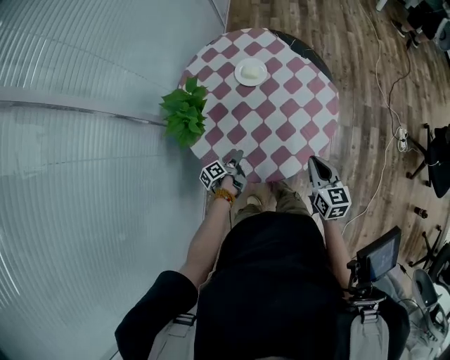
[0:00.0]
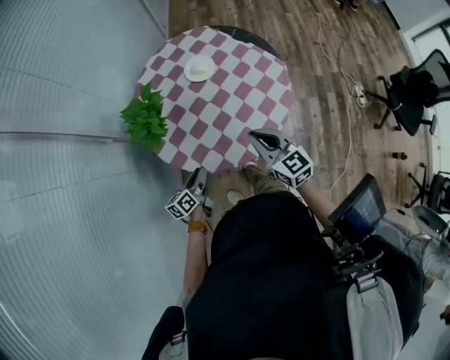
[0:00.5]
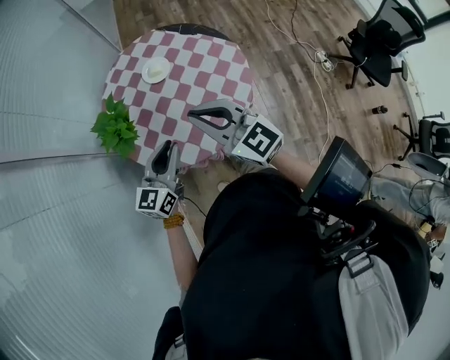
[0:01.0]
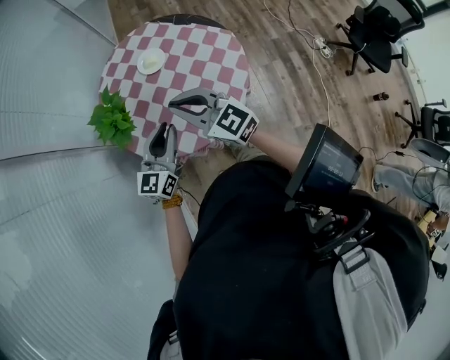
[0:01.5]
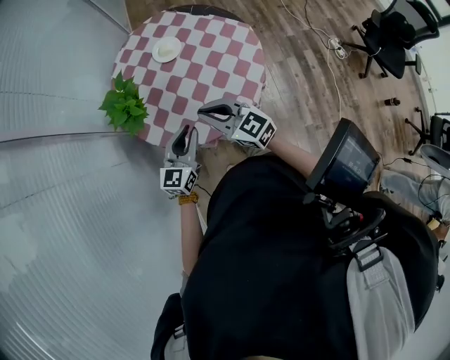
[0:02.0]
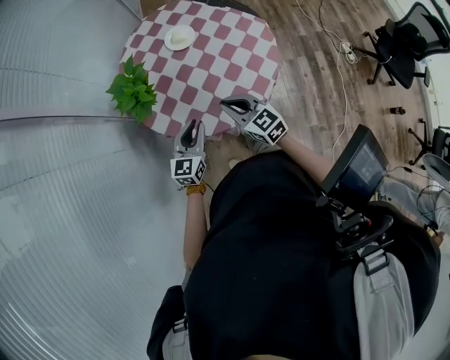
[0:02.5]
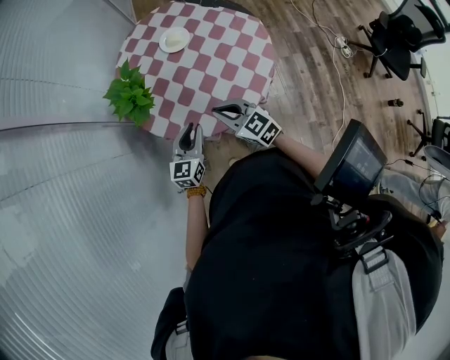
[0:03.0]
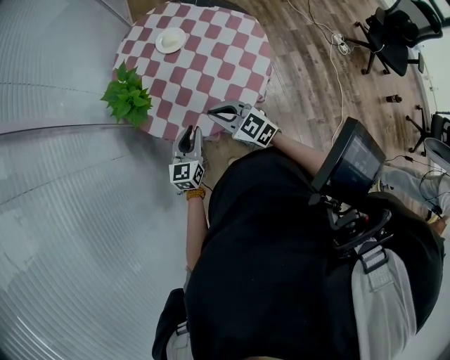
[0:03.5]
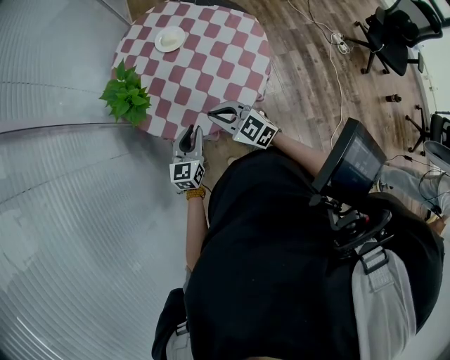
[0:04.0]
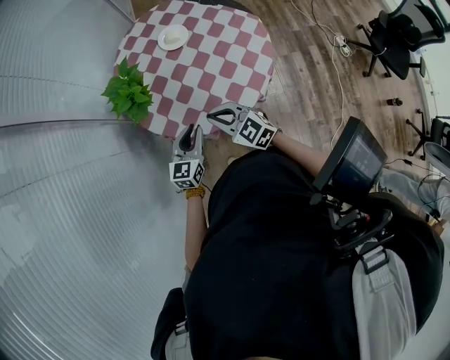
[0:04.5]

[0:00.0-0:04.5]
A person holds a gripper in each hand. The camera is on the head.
0:00.0 to 0:02.0: The right gripper is displaced to the left and upward by some 20 cm, and turns by about 30 degrees; the left gripper moves upward, approximately 25 cm, and twists about 80 degrees clockwise, seen from behind.
0:02.0 to 0:04.5: The two grippers go about 5 cm downward.

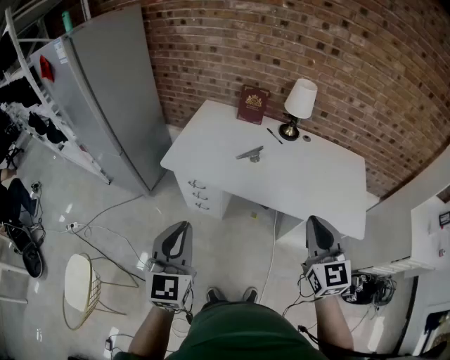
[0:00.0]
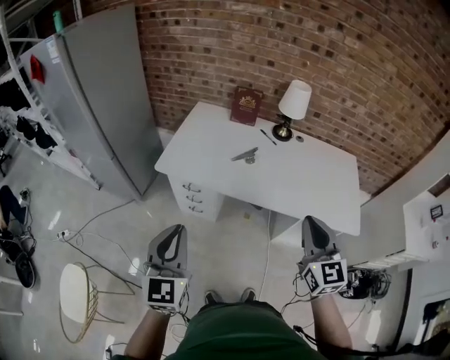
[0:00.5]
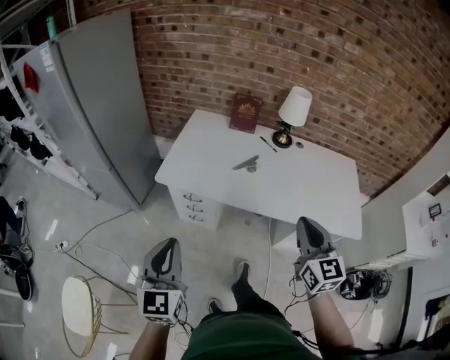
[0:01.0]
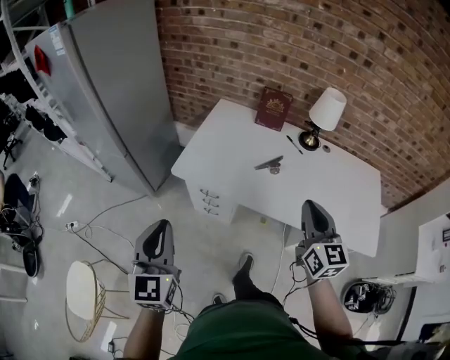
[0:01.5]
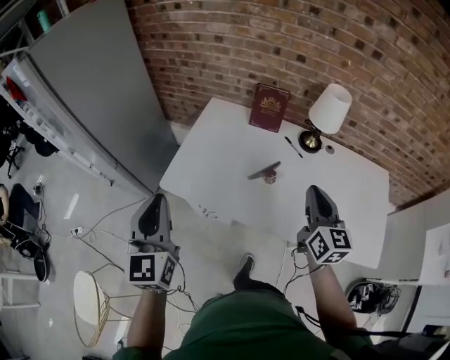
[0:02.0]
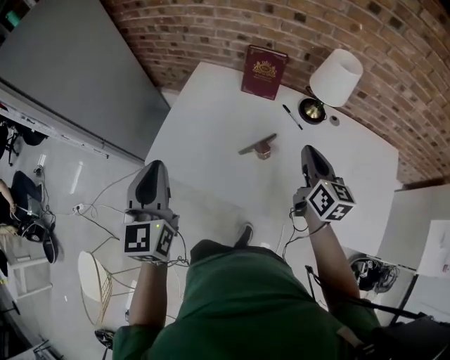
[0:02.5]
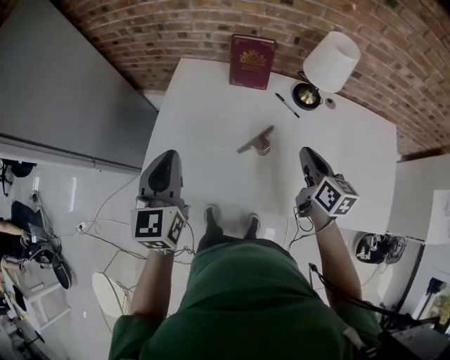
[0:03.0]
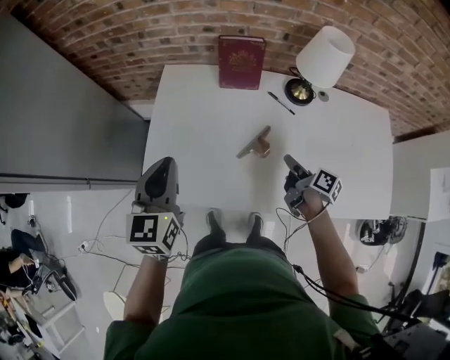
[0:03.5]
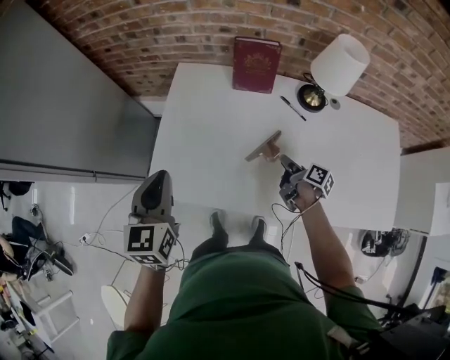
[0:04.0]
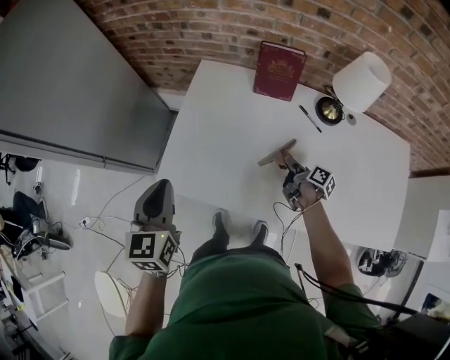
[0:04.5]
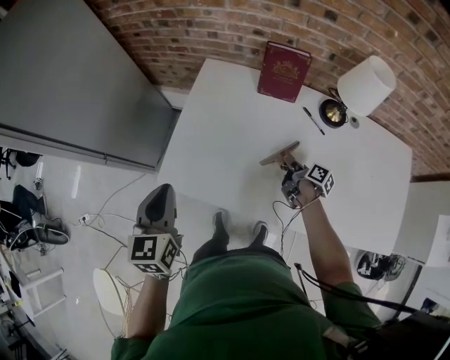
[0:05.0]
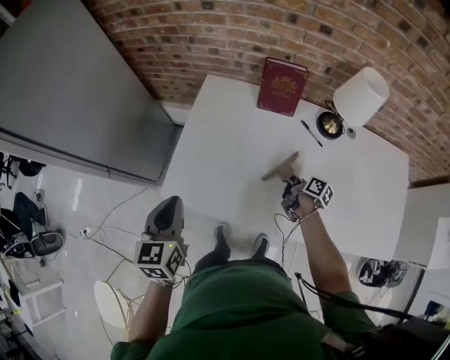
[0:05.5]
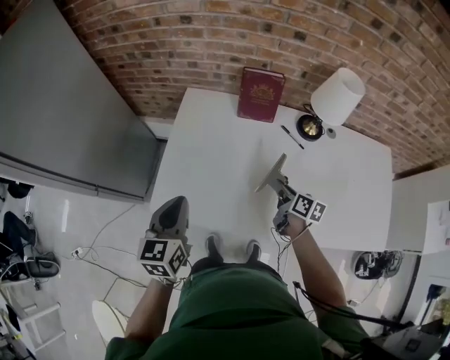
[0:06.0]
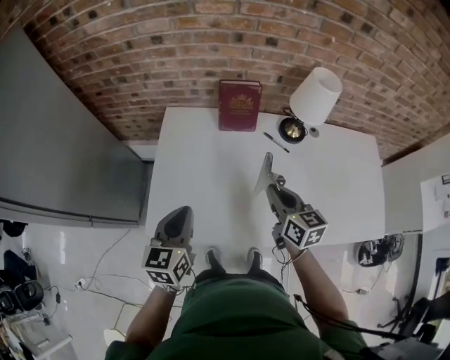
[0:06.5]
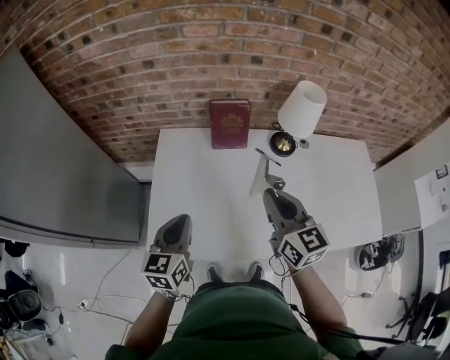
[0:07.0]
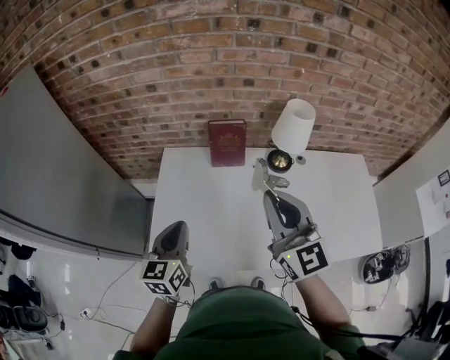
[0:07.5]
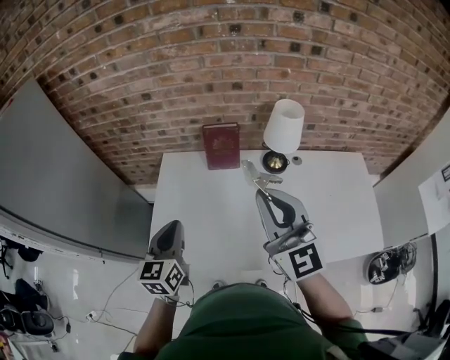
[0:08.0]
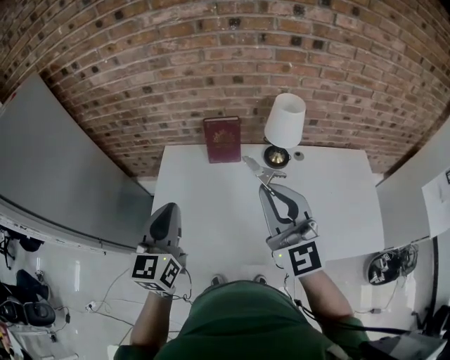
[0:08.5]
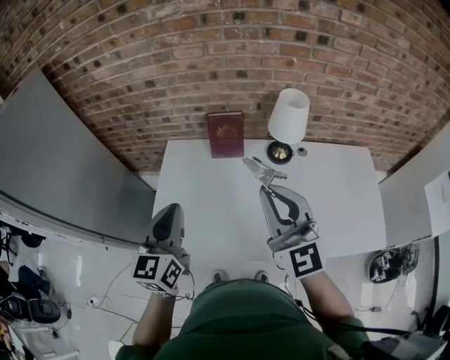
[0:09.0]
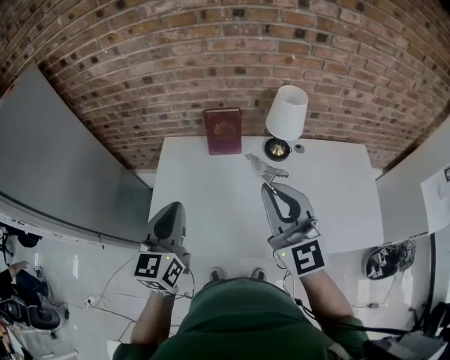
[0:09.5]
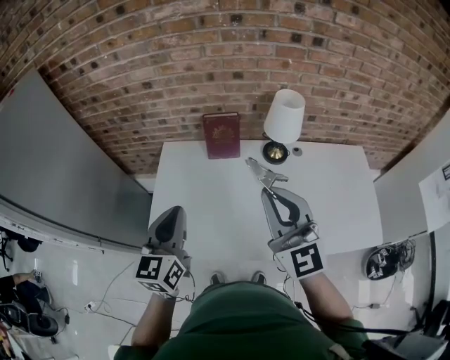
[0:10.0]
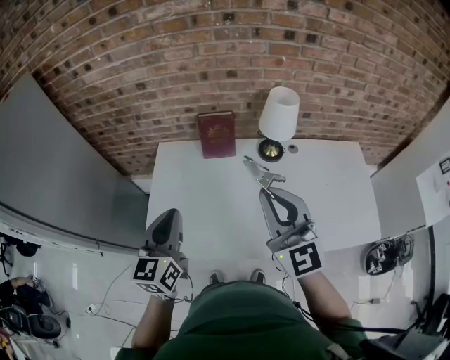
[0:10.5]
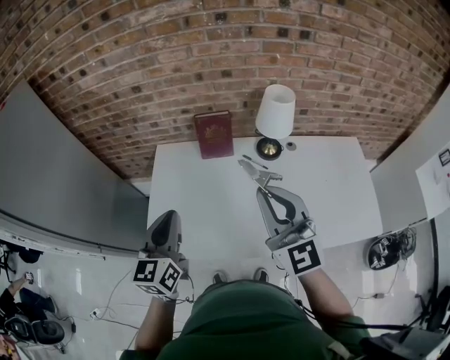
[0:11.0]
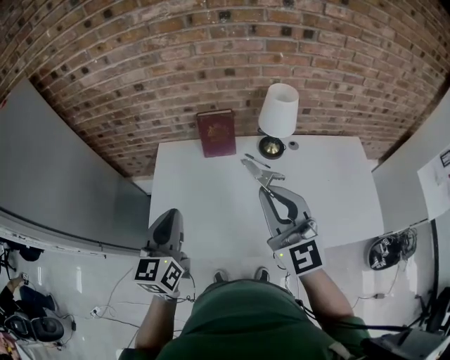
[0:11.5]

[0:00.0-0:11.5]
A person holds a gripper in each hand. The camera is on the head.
0:00.0 to 0:02.0: The two grippers go roughly 30 cm forward. The right gripper changes its angle by about 20 degrees.
0:02.0 to 0:04.0: The left gripper heads forward and downward, covering about 25 cm, and swivels some 20 degrees; the right gripper shifts some 35 cm downward and forward, rotates around the line of its fingers by approximately 70 degrees, clockwise from behind, and opens its fingers.
0:04.0 to 0:06.0: The right gripper heads upward, covering approximately 5 cm, rotates about 30 degrees, and closes up.
0:06.0 to 0:07.5: The left gripper moves upward, about 5 cm. Meanwhile the right gripper goes some 35 cm upward, and rolls counterclockwise, seen from behind, by roughly 60 degrees.
0:07.5 to 0:09.5: The right gripper changes place by about 5 cm; the left gripper travels upward by roughly 10 cm.
0:09.5 to 0:11.5: The grippers move only a little.

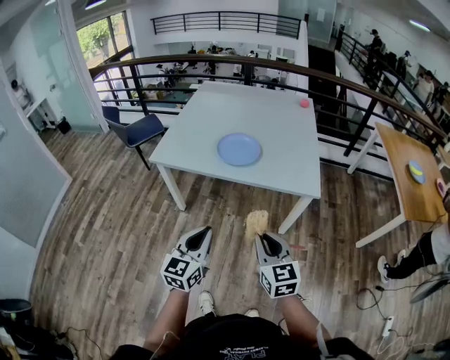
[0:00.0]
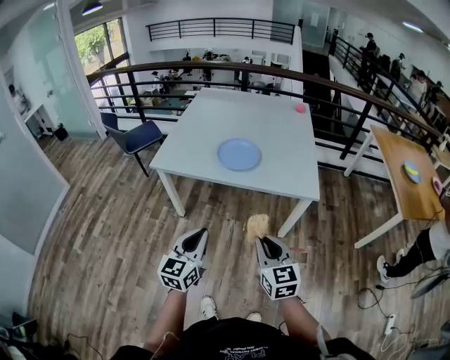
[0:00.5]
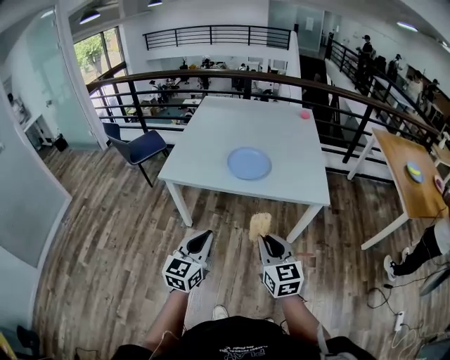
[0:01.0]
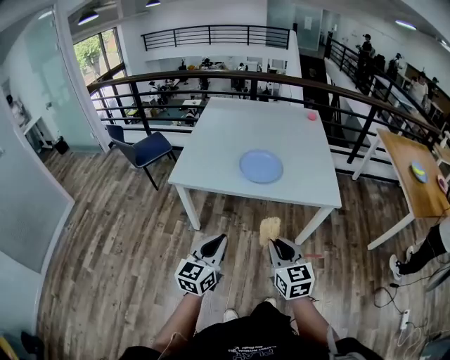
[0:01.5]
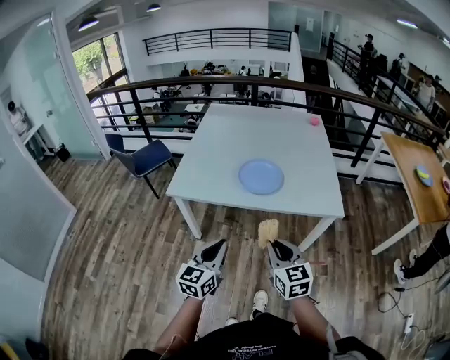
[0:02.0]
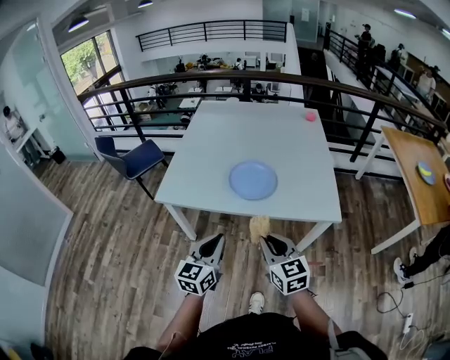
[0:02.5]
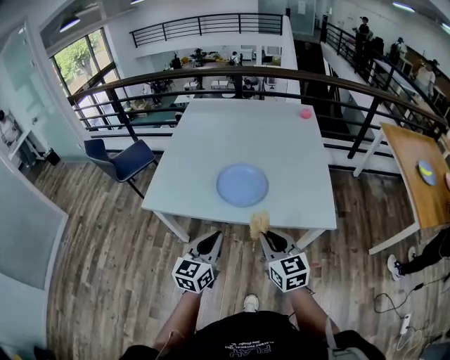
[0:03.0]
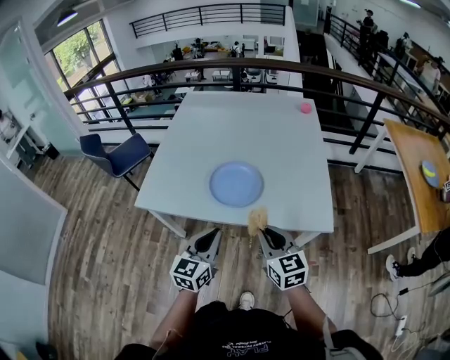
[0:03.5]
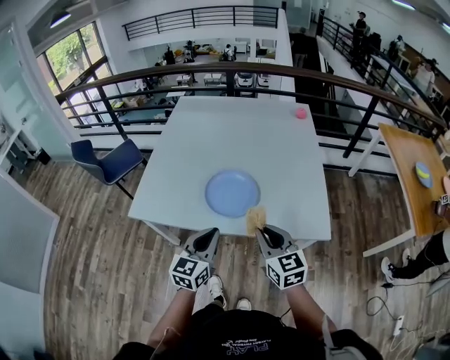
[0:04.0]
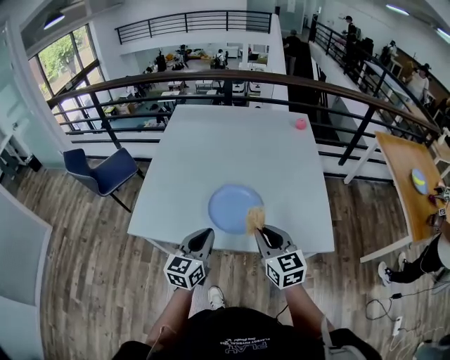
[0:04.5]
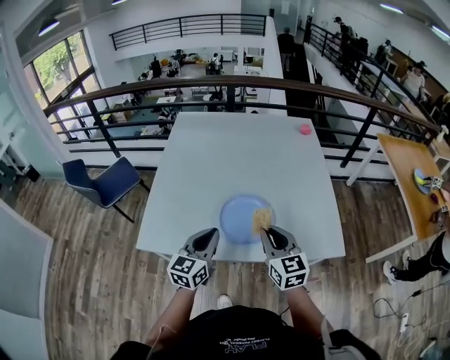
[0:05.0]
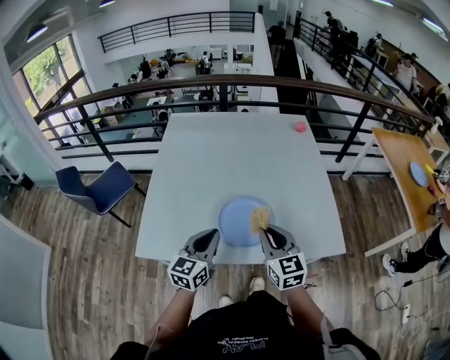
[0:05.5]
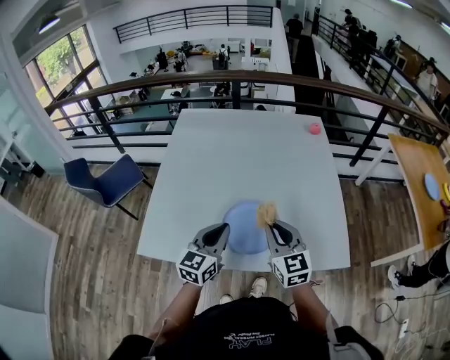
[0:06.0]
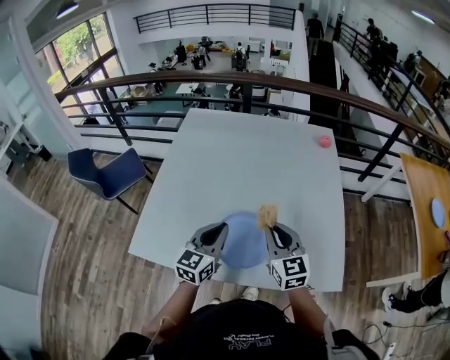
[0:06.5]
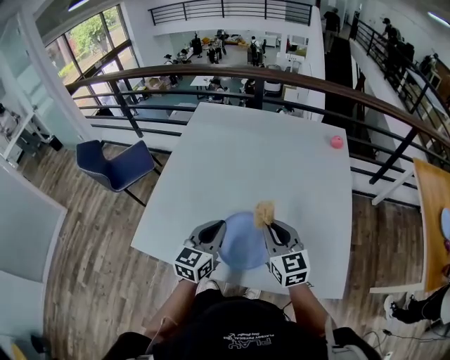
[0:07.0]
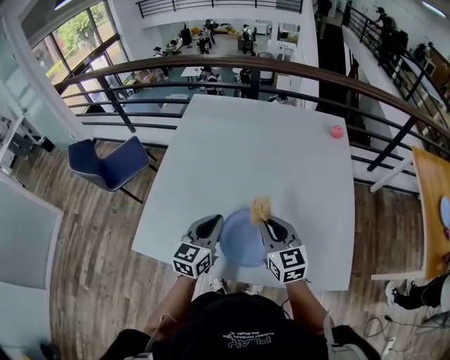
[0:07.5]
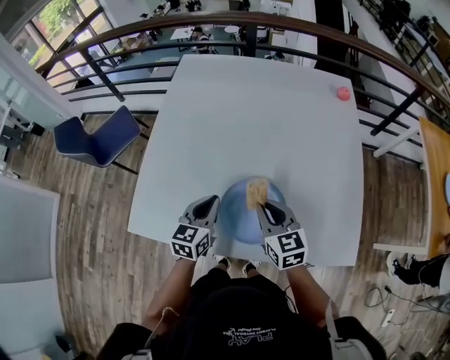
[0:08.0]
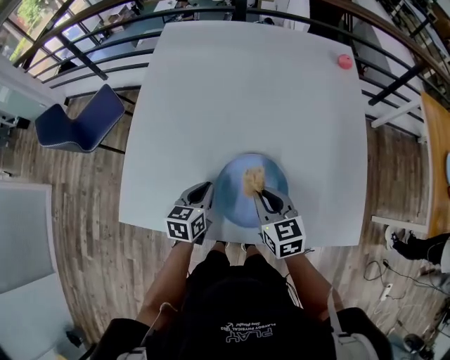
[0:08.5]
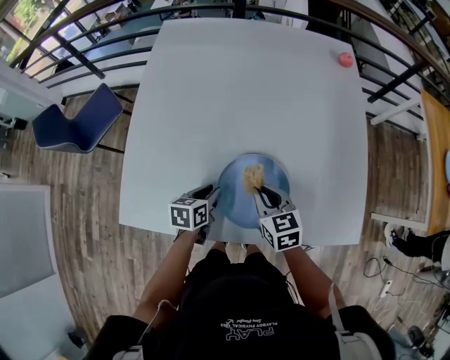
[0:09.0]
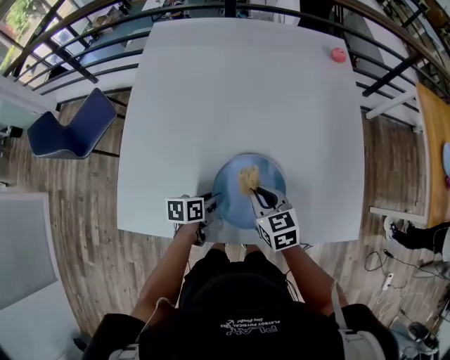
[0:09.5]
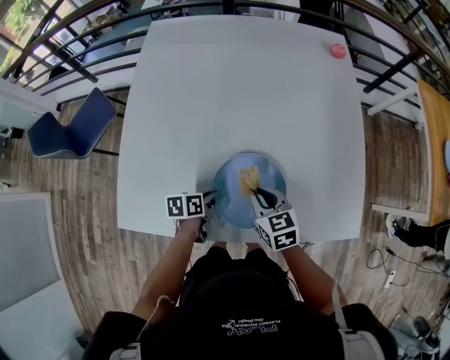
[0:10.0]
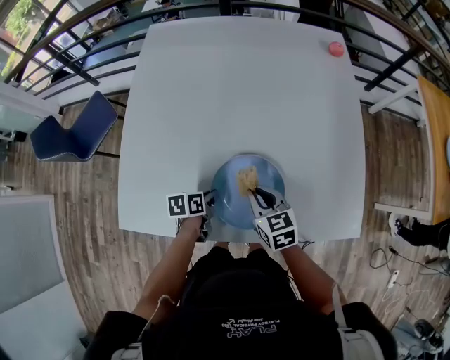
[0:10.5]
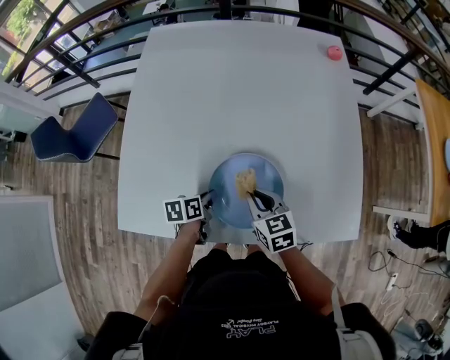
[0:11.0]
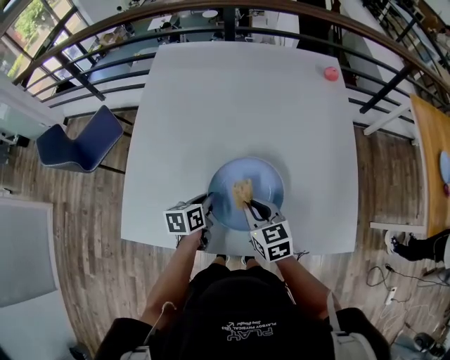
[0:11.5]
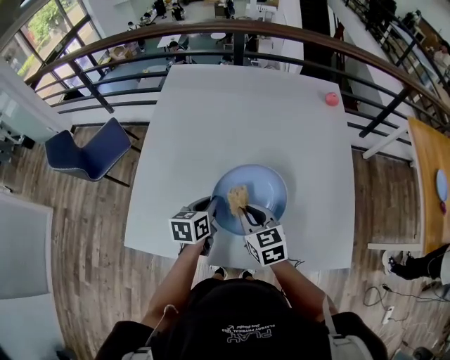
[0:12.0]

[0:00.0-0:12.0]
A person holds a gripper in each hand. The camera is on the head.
0:00.0 to 0:02.0: Both grippers travel together to the left and forward, some 15 cm.
0:02.0 to 0:04.0: The two grippers go approximately 25 cm forward and to the right.
0:04.0 to 0:06.0: The left gripper shifts about 20 cm forward; the right gripper shifts roughly 20 cm forward and to the left.
0:06.0 to 0:08.0: The right gripper goes about 15 cm downward and forward; the left gripper moves forward and downward, approximately 15 cm.
0:08.0 to 0:10.0: The left gripper heads downward, covering about 20 cm, and turns by approximately 50 degrees. Meanwhile the right gripper shifts roughly 10 cm downward.
0:10.0 to 0:12.0: The left gripper is displaced upward and forward by some 15 cm, and turns by roughly 30 degrees. The right gripper is displaced upward by some 10 cm.
